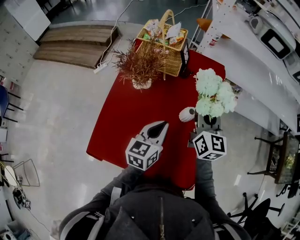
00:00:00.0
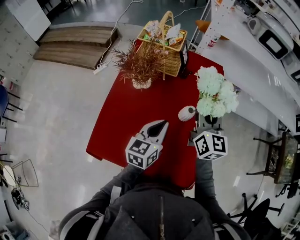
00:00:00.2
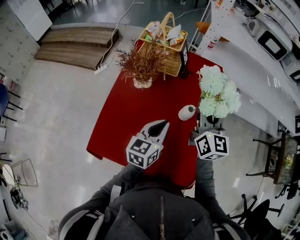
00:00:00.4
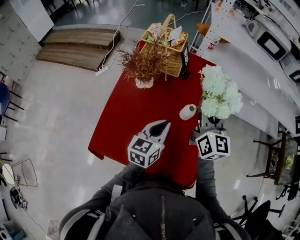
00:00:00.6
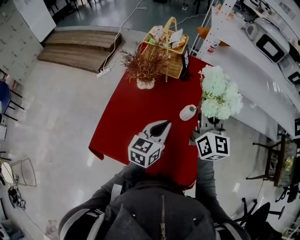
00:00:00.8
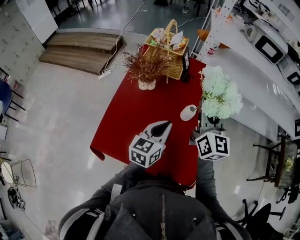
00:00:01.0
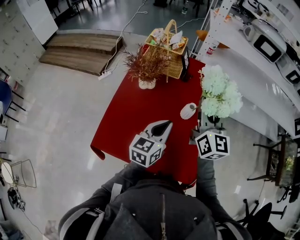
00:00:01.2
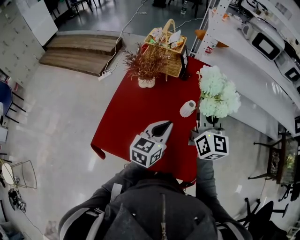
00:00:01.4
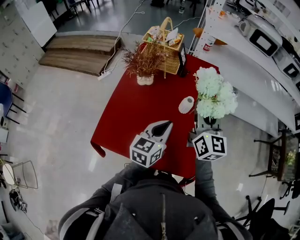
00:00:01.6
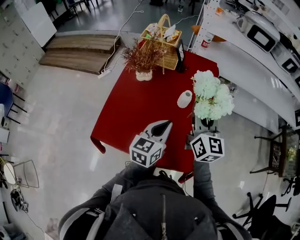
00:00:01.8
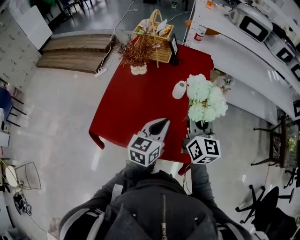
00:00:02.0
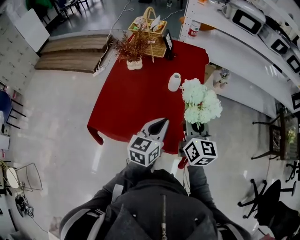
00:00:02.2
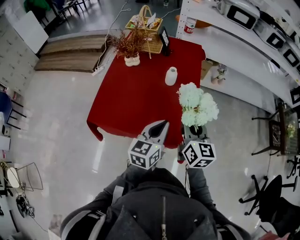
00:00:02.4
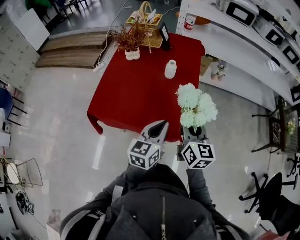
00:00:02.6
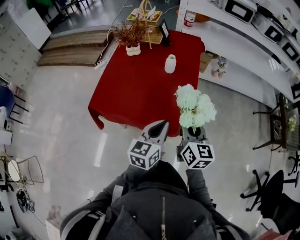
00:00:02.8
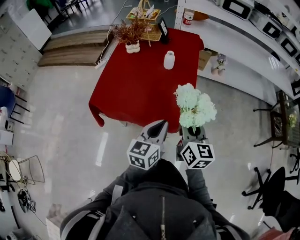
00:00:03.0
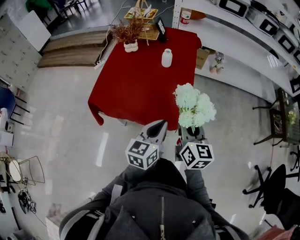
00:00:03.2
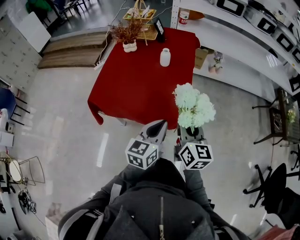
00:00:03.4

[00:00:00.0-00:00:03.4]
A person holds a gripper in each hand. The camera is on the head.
00:00:00.0 to 00:00:01.6: The left gripper moves backward, some 5 cm. The right gripper moves backward and upward, approximately 10 cm.
00:00:01.6 to 00:00:03.4: The right gripper is displaced backward by roughly 30 cm; the left gripper goes about 30 cm backward and to the right.

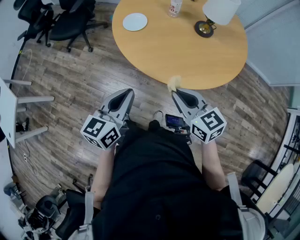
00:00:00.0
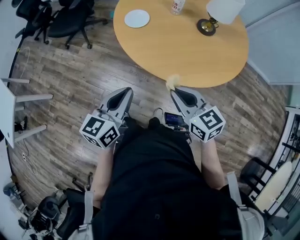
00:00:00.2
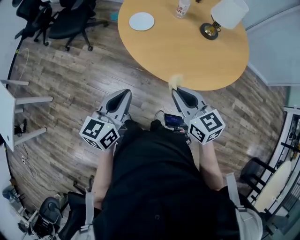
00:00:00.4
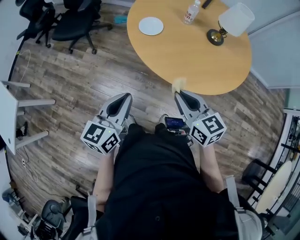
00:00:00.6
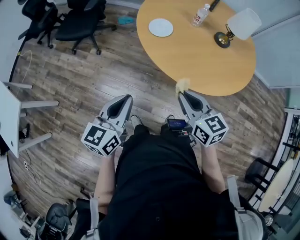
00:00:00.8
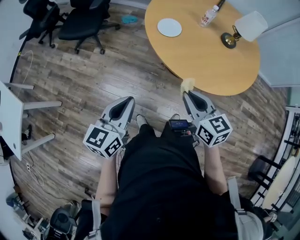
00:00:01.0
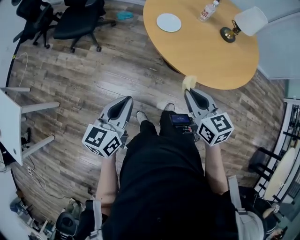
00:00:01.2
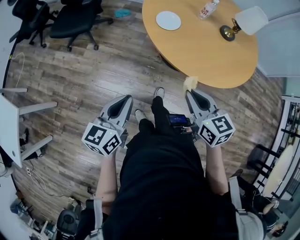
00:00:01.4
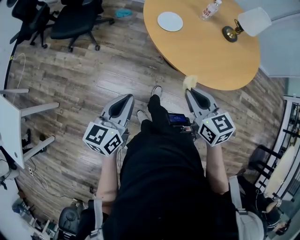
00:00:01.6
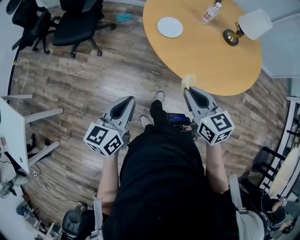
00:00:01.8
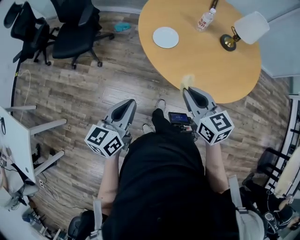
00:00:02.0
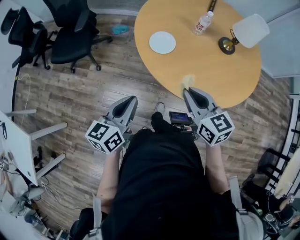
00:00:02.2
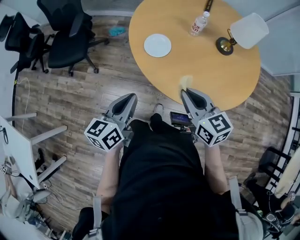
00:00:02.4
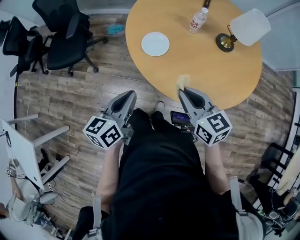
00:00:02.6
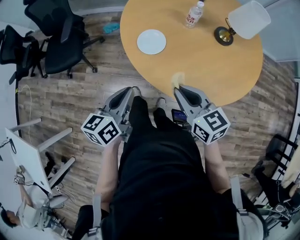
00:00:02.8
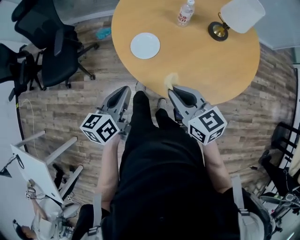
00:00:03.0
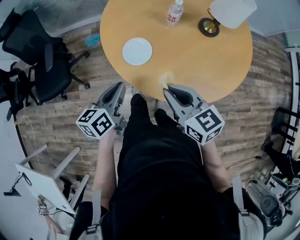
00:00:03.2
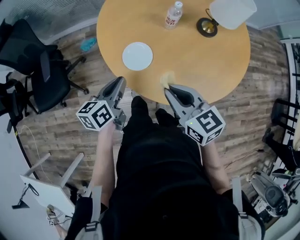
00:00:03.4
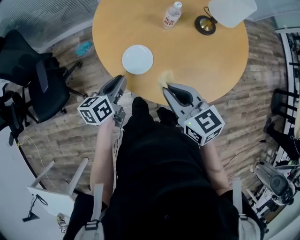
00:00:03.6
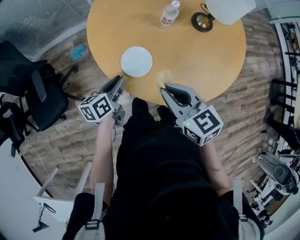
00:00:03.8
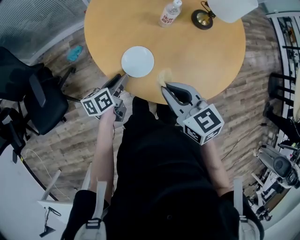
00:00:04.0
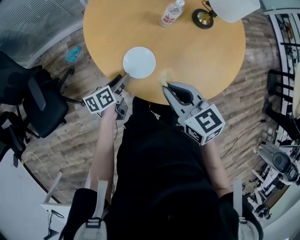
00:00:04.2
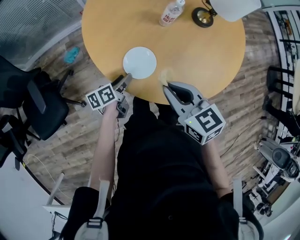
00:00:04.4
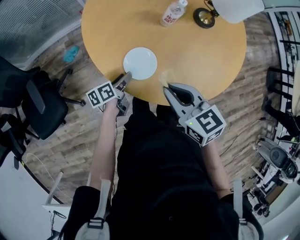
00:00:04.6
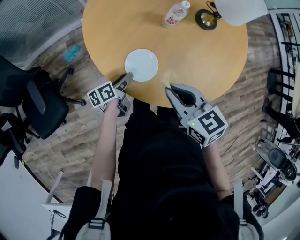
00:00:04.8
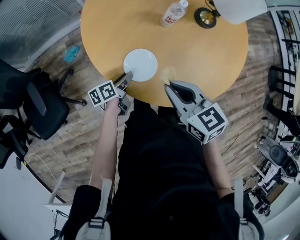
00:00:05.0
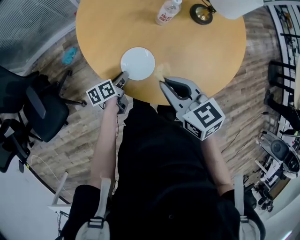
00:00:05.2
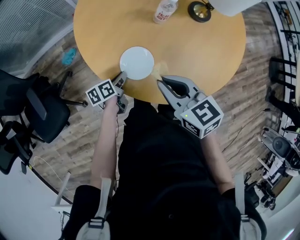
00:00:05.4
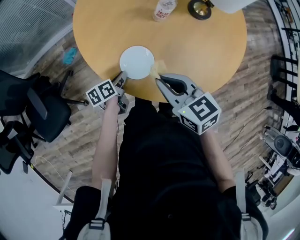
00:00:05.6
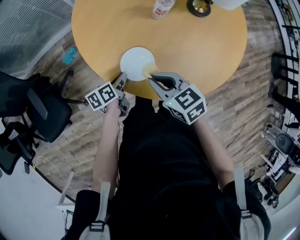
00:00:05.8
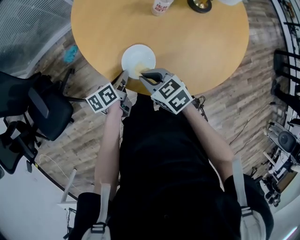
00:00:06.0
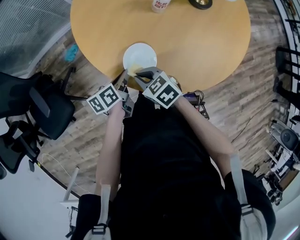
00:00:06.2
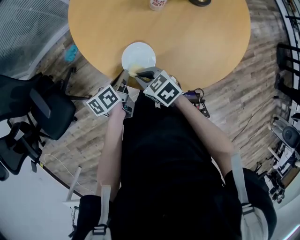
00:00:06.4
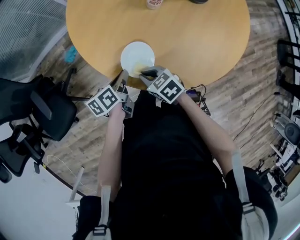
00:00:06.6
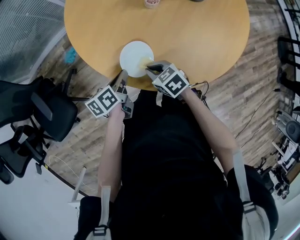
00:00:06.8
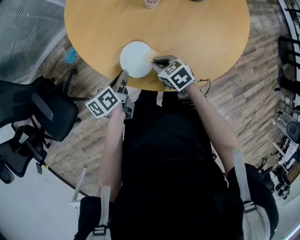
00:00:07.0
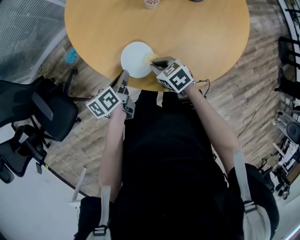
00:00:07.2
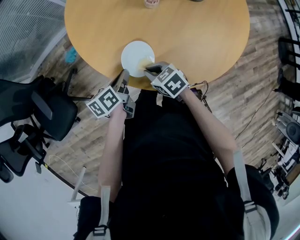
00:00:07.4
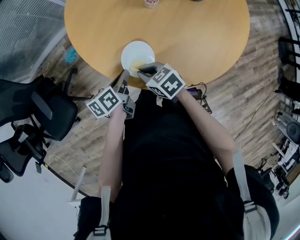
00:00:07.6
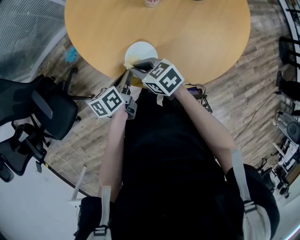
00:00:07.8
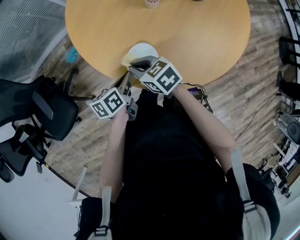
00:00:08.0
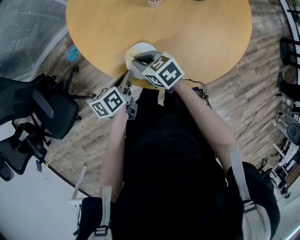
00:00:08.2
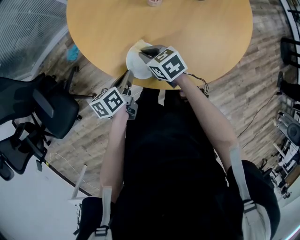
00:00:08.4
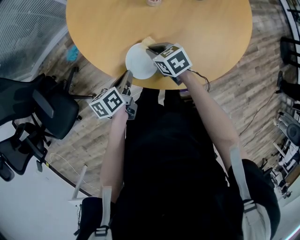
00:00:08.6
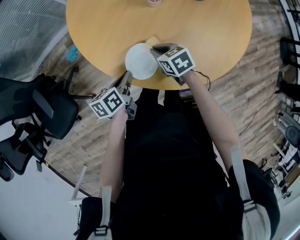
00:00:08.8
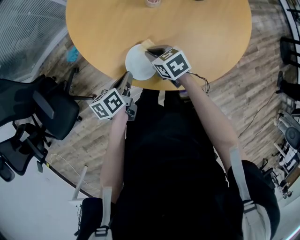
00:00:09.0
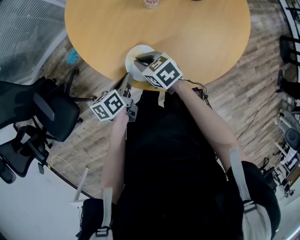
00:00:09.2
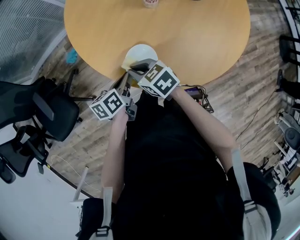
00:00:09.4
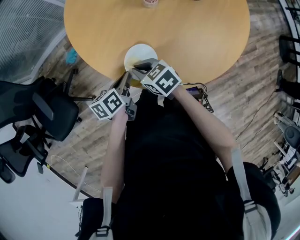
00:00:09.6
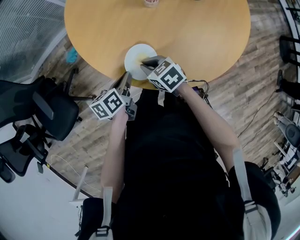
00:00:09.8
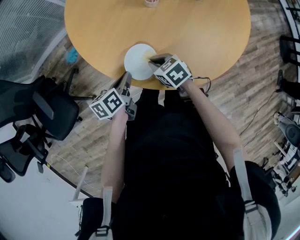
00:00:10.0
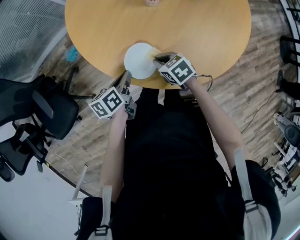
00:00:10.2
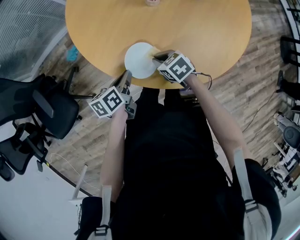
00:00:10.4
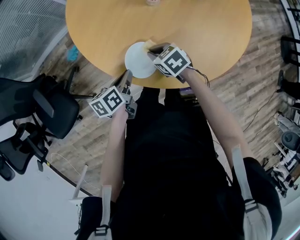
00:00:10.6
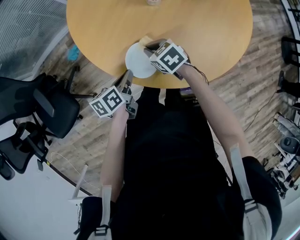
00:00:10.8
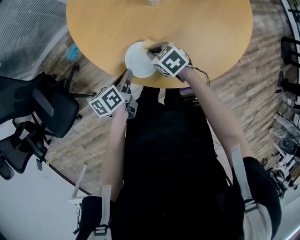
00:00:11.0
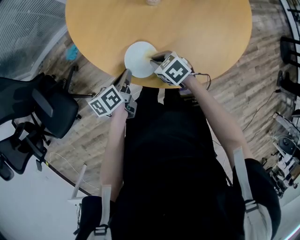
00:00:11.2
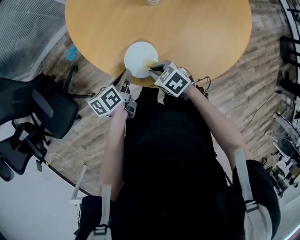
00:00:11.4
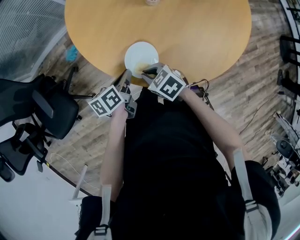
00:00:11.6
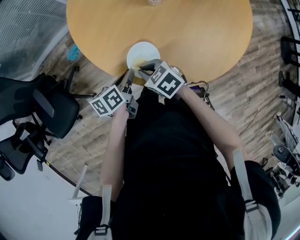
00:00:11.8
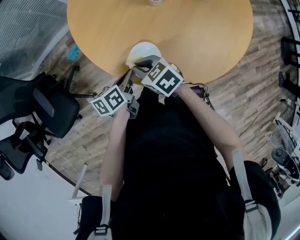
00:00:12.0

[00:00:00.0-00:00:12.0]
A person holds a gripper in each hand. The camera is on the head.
00:00:00.0 to 00:00:01.6: Both grippers travel together to the left, about 25 cm.
00:00:01.6 to 00:00:03.0: Both grippers move forward, roughly 20 cm.
00:00:03.0 to 00:00:04.4: The left gripper shifts approximately 20 cm downward, turns by approximately 40 degrees, and opens up. The right gripper changes place by about 15 cm, and turns by about 20 degrees.
00:00:04.4 to 00:00:06.0: The right gripper goes about 15 cm downward. Meanwhile the left gripper closes up.
00:00:06.0 to 00:00:07.6: The right gripper heads downward, covering approximately 5 cm, and goes to the right and returns, roughly 5 cm each way.
00:00:07.6 to 00:00:09.0: The right gripper goes approximately 10 cm forward and to the right.
00:00:09.0 to 00:00:10.4: The right gripper reaches about 10 cm to the left, then returns.
00:00:10.4 to 00:00:12.0: The right gripper moves forward and backward over about 10 cm, changing direction 2 times.

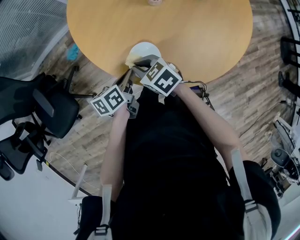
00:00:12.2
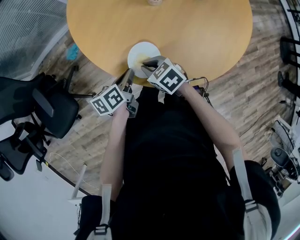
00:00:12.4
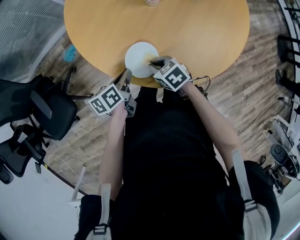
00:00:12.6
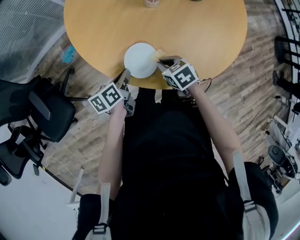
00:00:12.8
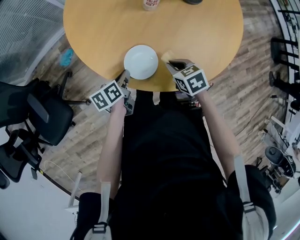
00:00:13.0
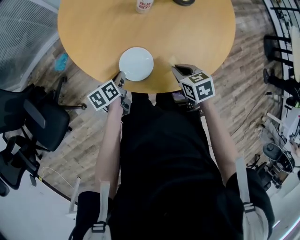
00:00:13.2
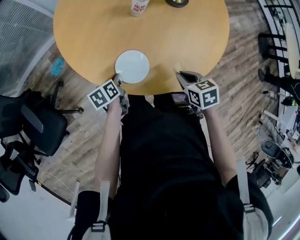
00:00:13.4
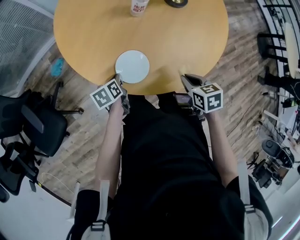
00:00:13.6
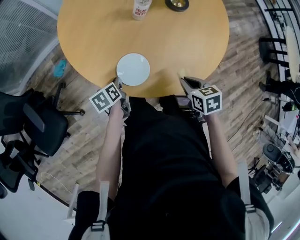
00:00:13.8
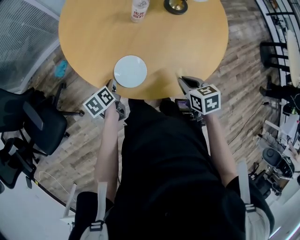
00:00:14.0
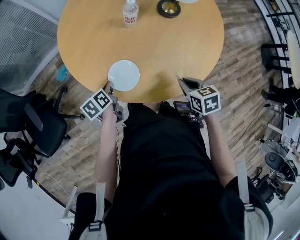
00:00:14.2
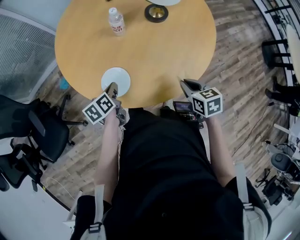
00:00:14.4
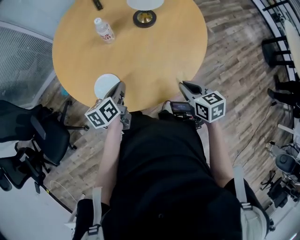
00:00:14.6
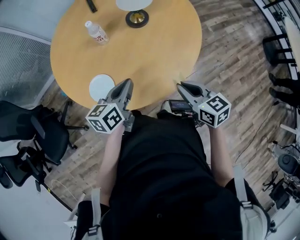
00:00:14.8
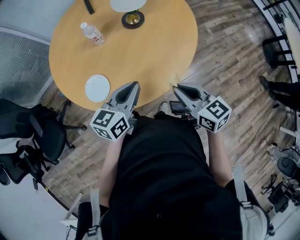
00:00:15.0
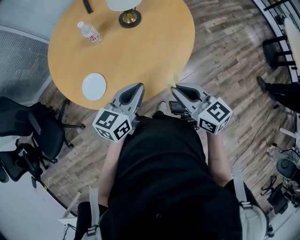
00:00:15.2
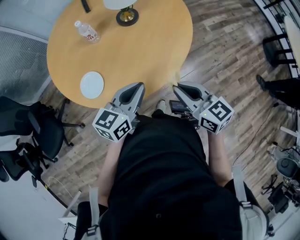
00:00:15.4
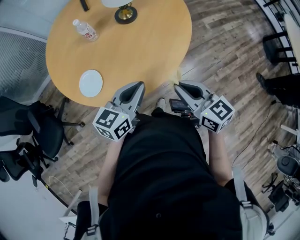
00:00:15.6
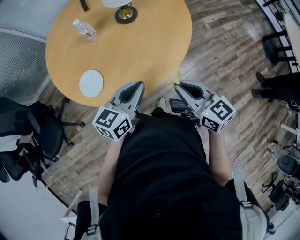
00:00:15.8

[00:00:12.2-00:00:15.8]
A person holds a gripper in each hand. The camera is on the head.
00:00:12.2 to 00:00:14.0: The right gripper shifts approximately 25 cm to the right, and changes its angle by about 30 degrees.
00:00:14.0 to 00:00:15.8: The left gripper heads to the right and upward, covering roughly 50 cm, and points its fingers about 30 degrees further upward, while the right gripper moves to the right and upward, some 25 cm, and points its fingers about 40 degrees further upward.

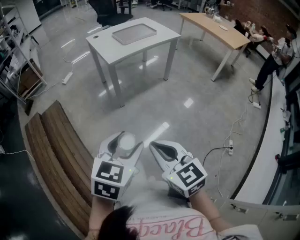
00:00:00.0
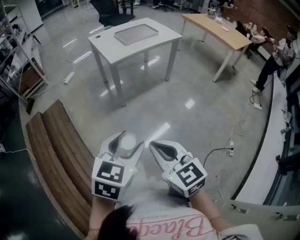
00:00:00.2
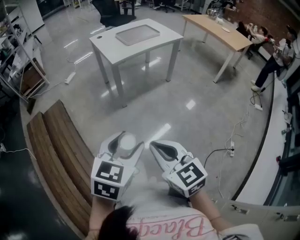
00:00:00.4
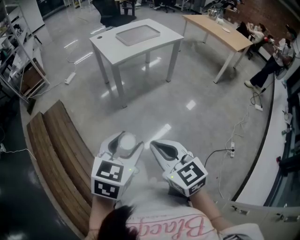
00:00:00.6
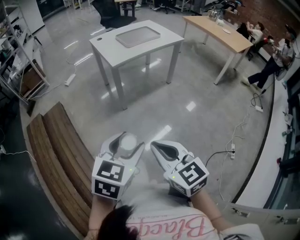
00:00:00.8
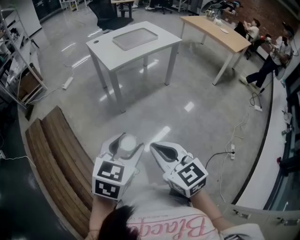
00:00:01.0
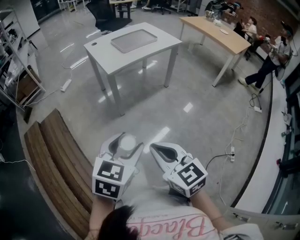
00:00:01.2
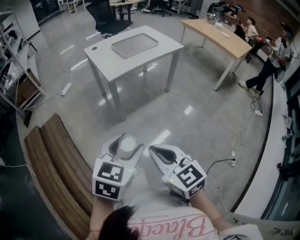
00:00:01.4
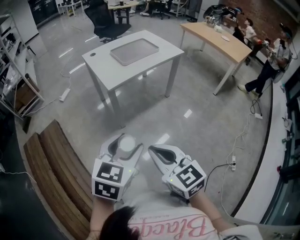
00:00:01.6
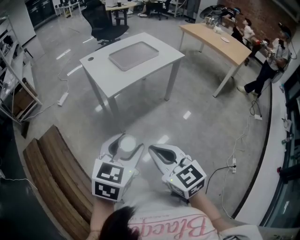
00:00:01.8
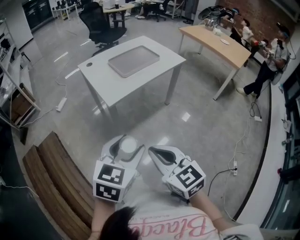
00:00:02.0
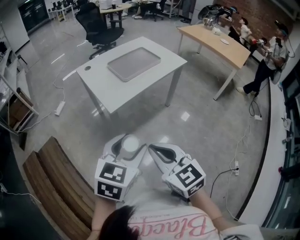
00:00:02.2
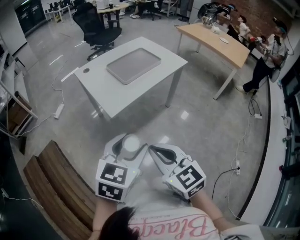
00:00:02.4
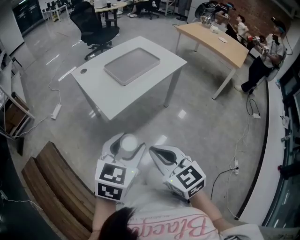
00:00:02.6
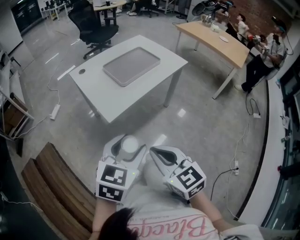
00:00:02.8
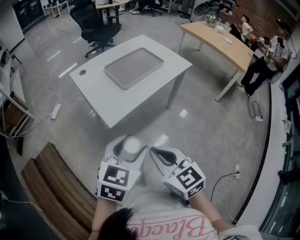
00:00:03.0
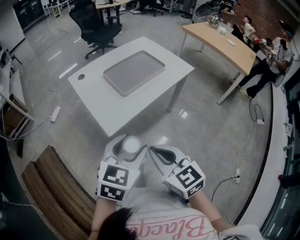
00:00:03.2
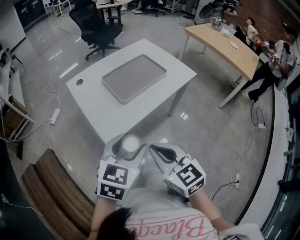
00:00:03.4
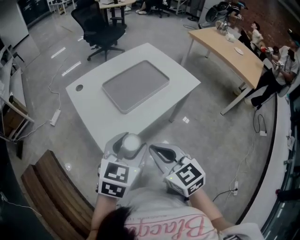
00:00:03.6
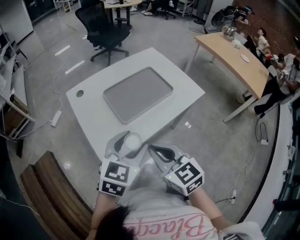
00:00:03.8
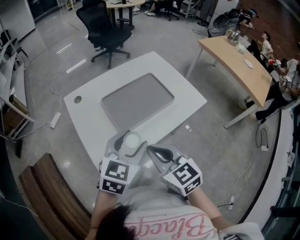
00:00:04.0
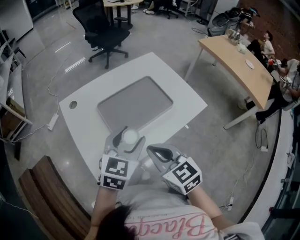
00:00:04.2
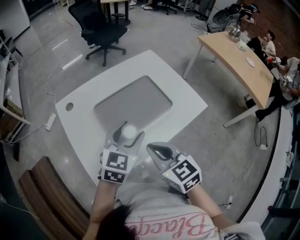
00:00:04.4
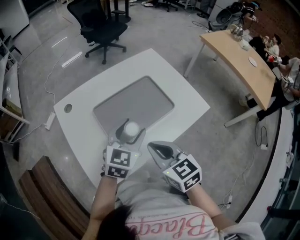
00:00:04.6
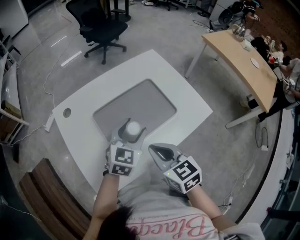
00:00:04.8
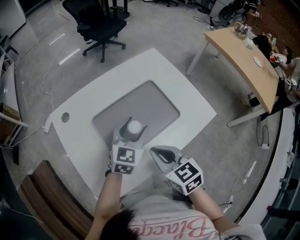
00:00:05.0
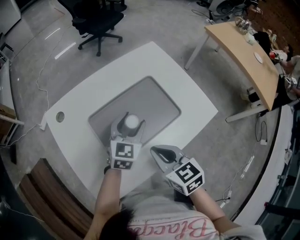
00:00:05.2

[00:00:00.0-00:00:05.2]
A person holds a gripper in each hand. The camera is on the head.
00:00:00.0 to 00:00:01.8: Both grippers move forward, about 20 cm.
00:00:01.8 to 00:00:03.4: Both grippers move forward, approximately 25 cm.
00:00:03.4 to 00:00:05.2: Both grippers travel together forward, about 30 cm.
